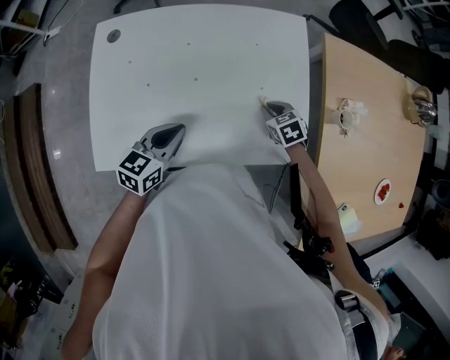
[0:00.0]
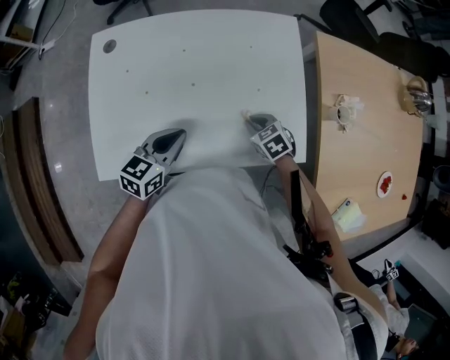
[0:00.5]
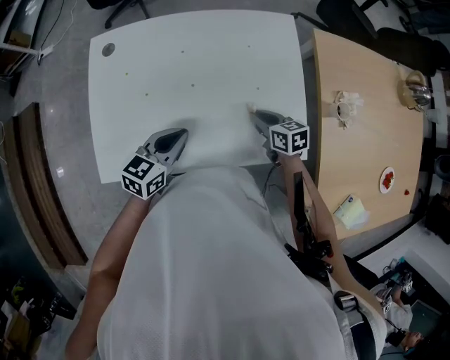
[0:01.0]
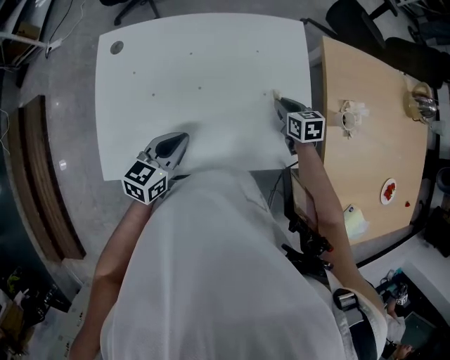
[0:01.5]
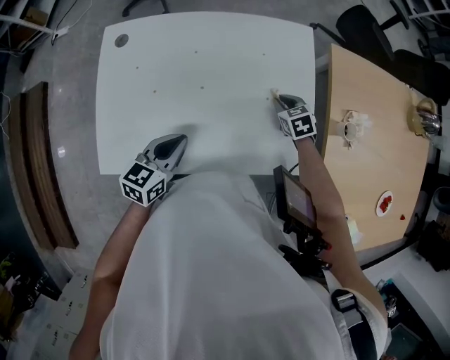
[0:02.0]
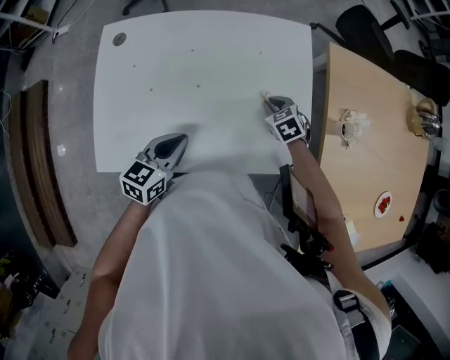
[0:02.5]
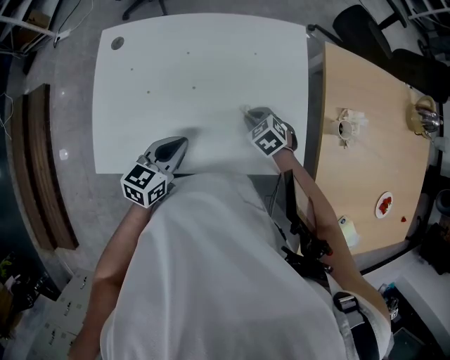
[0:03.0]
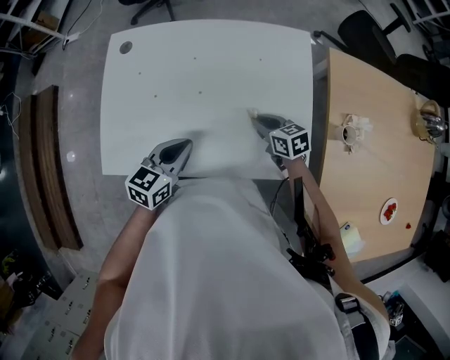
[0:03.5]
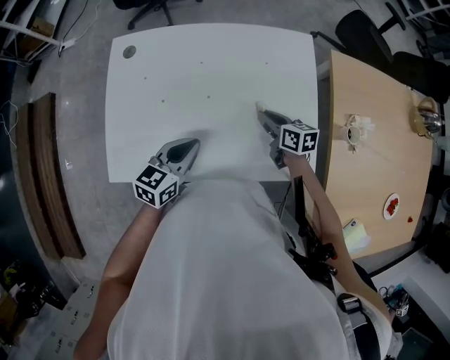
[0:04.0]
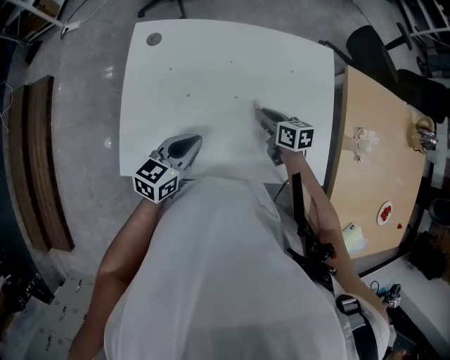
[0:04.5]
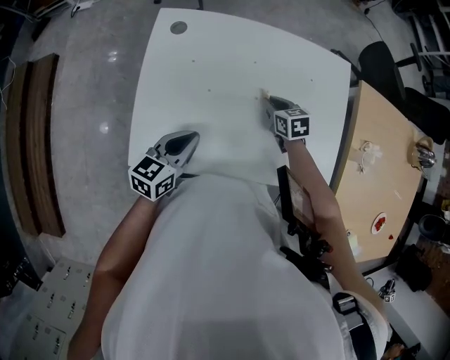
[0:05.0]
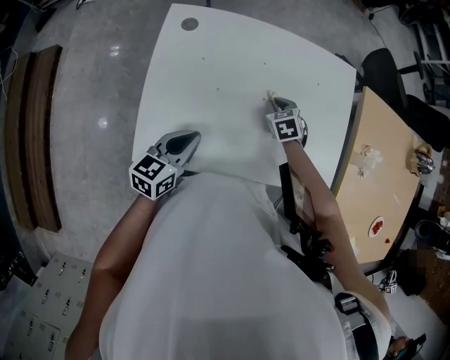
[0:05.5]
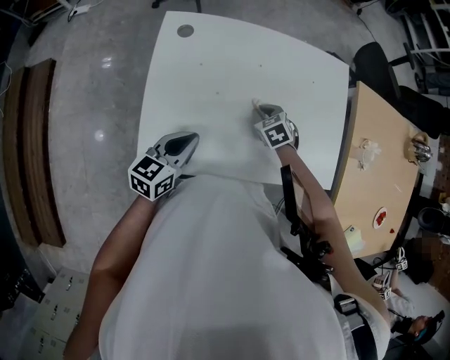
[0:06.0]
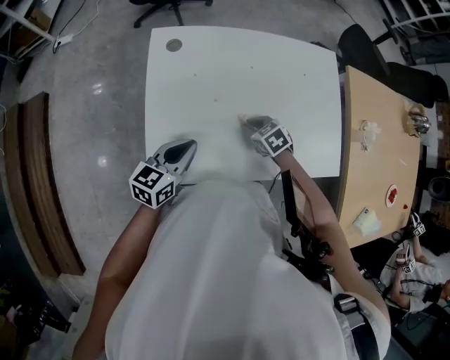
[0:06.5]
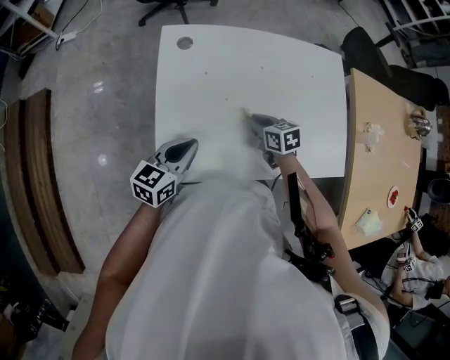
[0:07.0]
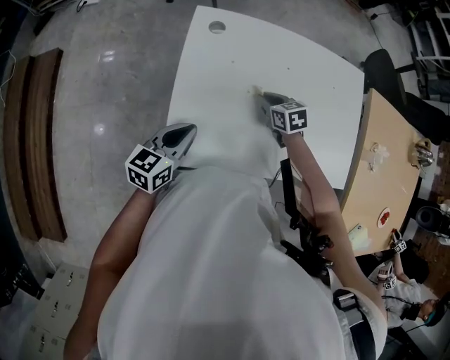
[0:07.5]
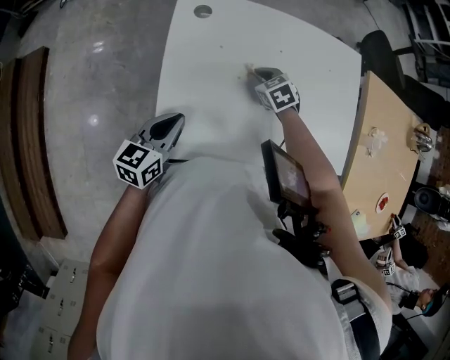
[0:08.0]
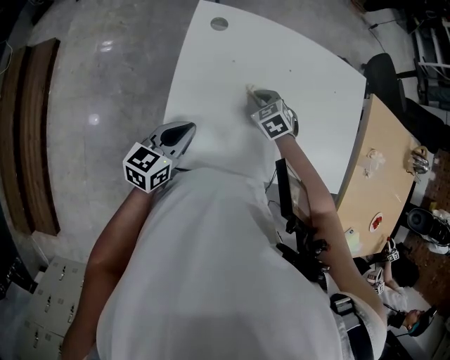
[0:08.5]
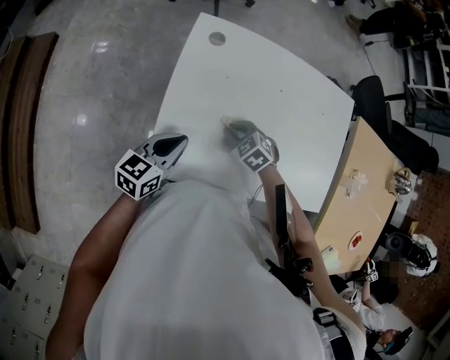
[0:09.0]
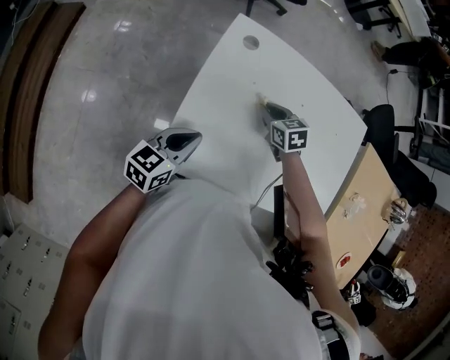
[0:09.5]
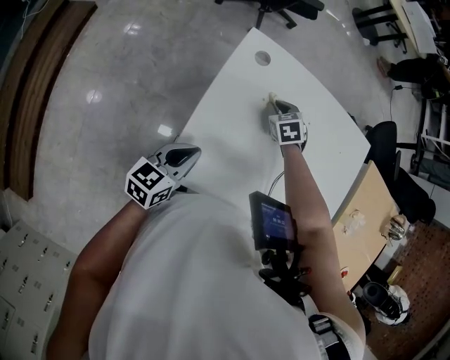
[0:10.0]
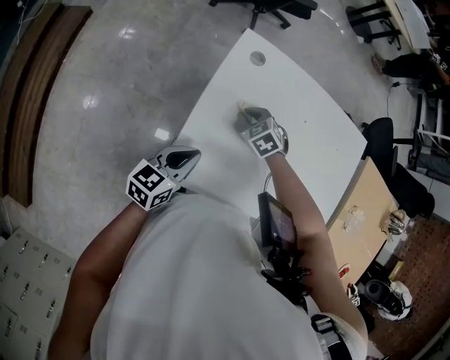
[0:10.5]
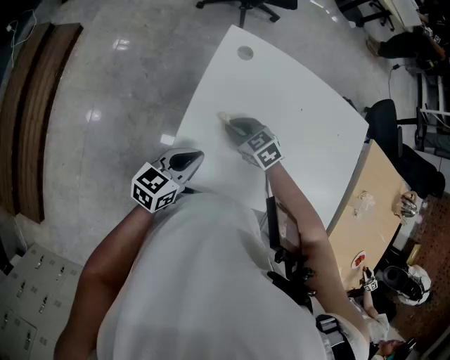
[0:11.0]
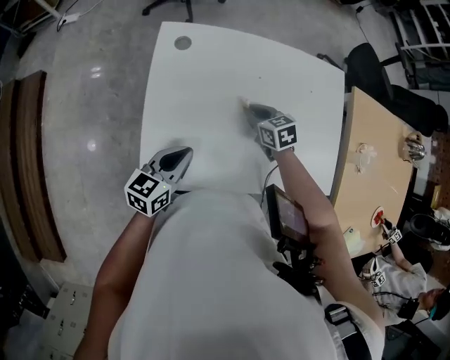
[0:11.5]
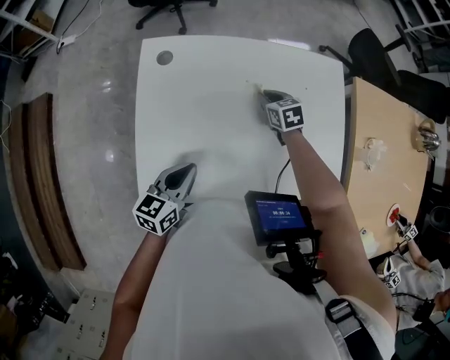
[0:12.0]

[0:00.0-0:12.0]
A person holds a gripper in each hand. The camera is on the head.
0:00.0 to 0:02.0: The right gripper travels forward by some 5 cm.
0:02.0 to 0:04.0: The right gripper heads to the left, covering approximately 10 cm, and swivels roughly 40 degrees.
0:04.0 to 0:06.0: The grippers both shift to the left by about 15 cm. The right gripper twists roughly 40 degrees counterclockwise, seen from behind.
0:06.0 to 0:08.0: The right gripper heads to the left and forward, covering roughly 10 cm. The left gripper travels to the left by roughly 10 cm.
0:08.0 to 0:10.0: The right gripper travels forward and to the left by some 10 cm.
0:10.0 to 0:12.0: The grippers both shift to the right by some 15 cm. The right gripper changes its angle by about 30 degrees.

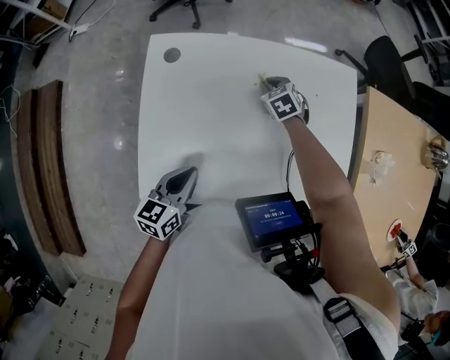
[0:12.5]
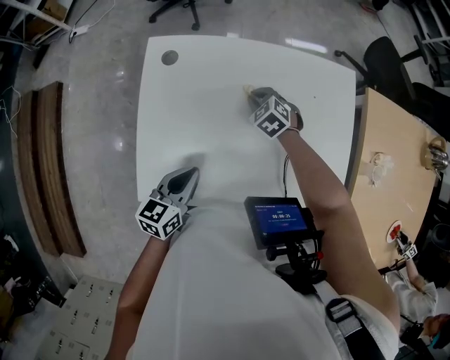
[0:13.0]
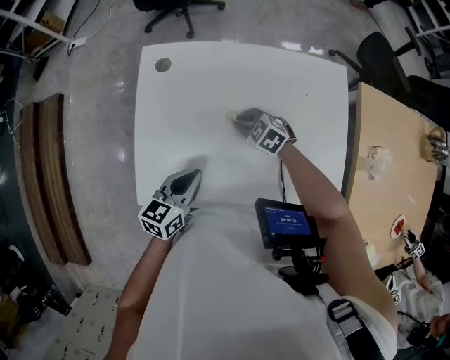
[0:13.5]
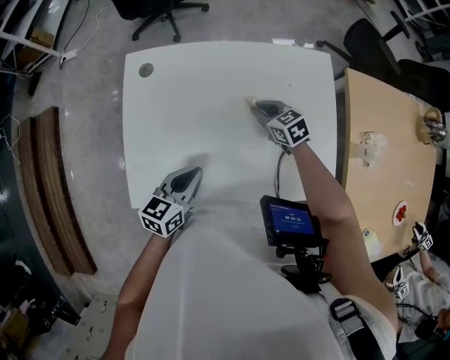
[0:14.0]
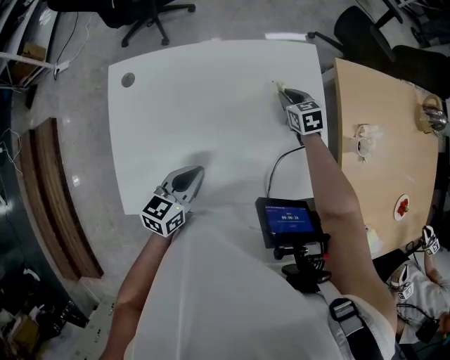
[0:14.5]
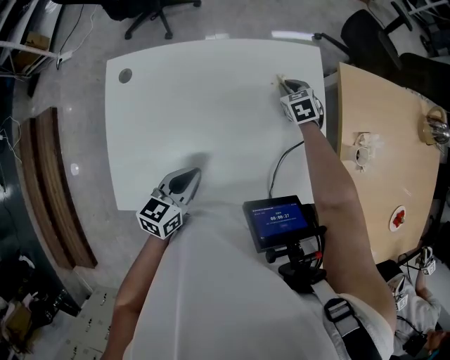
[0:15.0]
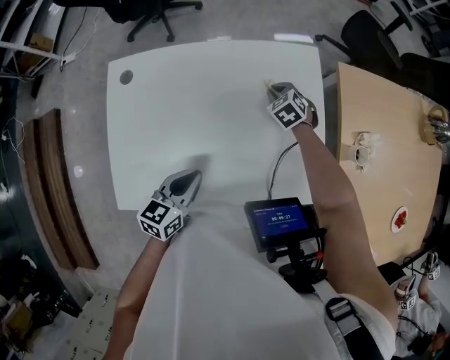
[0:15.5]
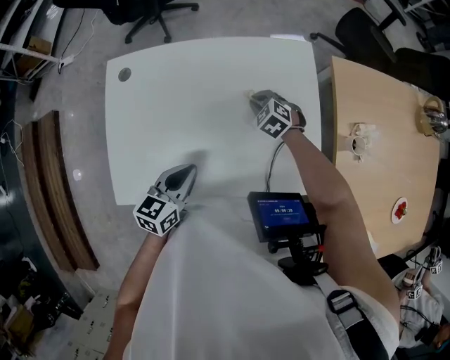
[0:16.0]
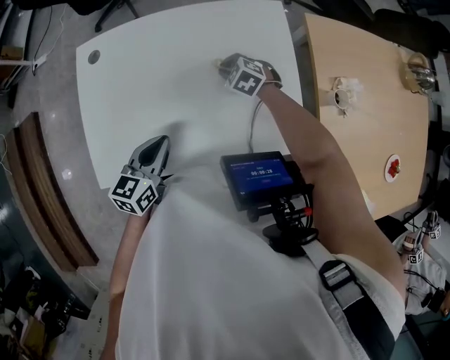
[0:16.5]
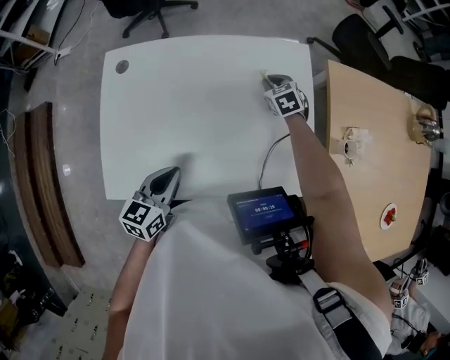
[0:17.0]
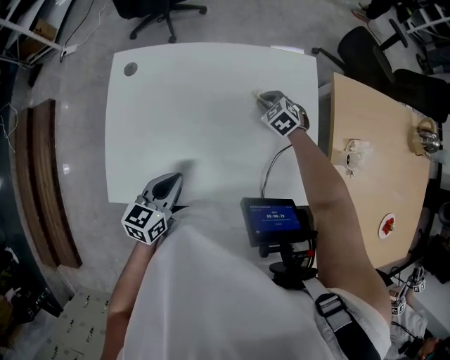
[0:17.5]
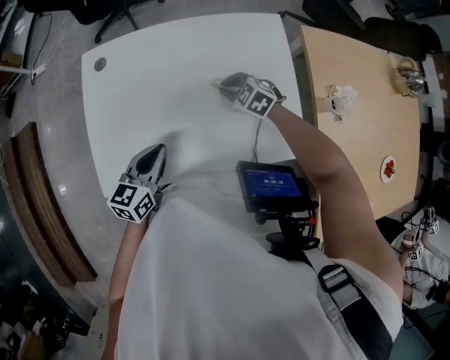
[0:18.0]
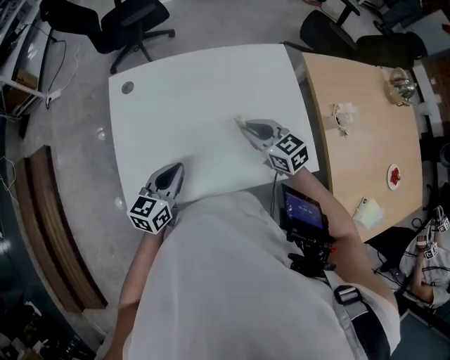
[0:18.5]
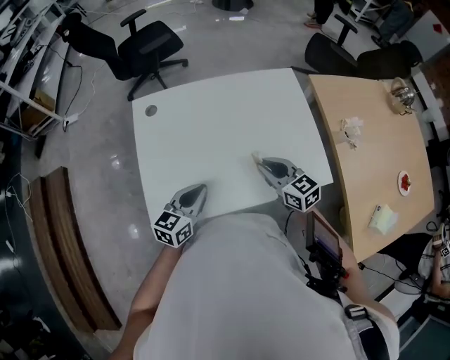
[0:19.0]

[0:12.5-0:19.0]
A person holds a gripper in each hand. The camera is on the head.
0:12.5 to 0:14.5: The left gripper moves approximately 10 cm; the right gripper moves approximately 20 cm, and rotates approximately 30 degrees.
0:14.5 to 0:17.0: The right gripper goes forward and backward, some 10 cm each way, reversing 2 times.
0:17.0 to 0:19.0: The right gripper moves backward, upward and to the left, about 35 cm, and changes its angle by roughly 30 degrees. The left gripper travels to the left by approximately 5 cm.

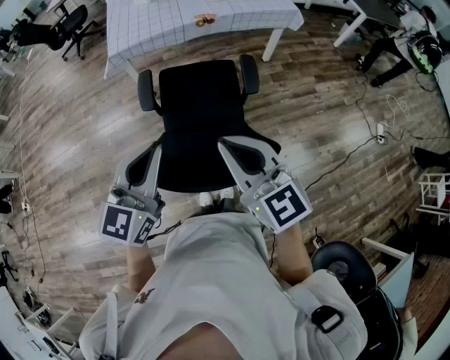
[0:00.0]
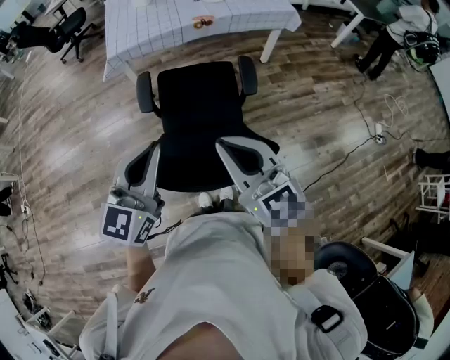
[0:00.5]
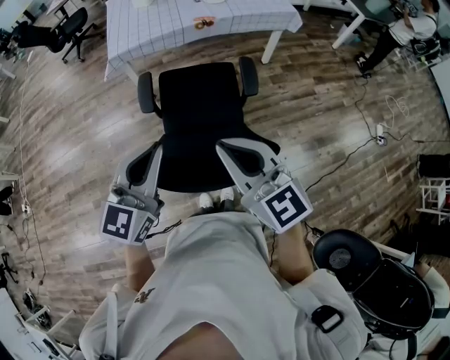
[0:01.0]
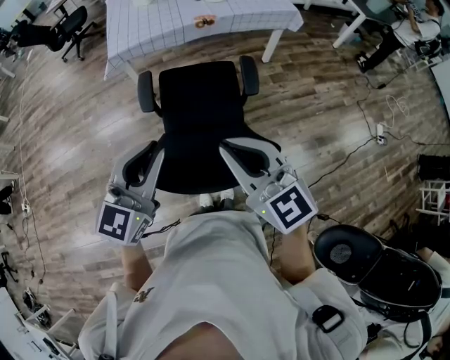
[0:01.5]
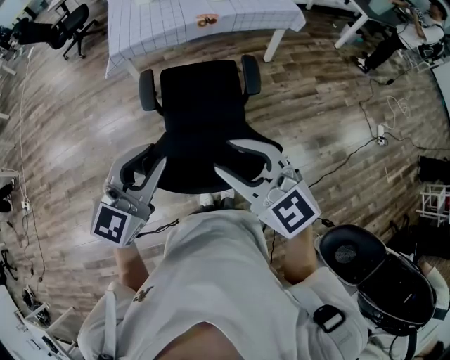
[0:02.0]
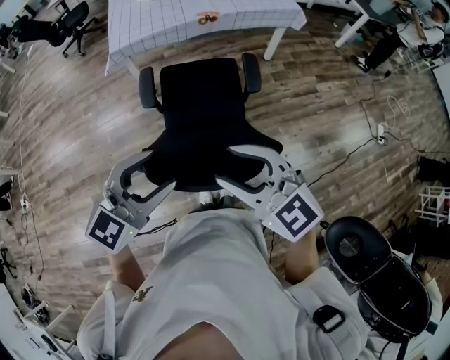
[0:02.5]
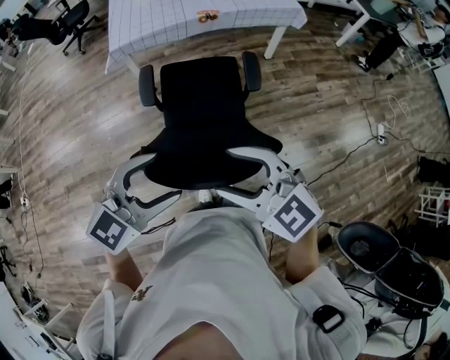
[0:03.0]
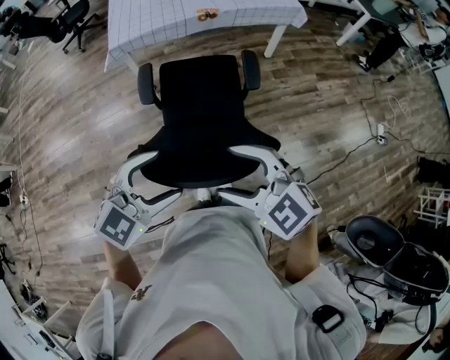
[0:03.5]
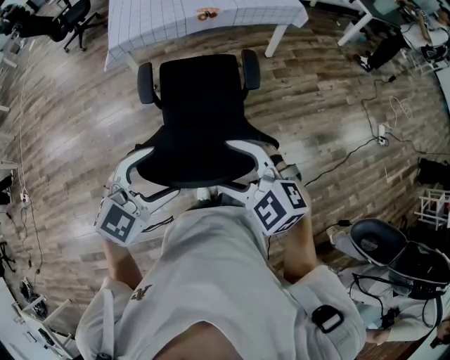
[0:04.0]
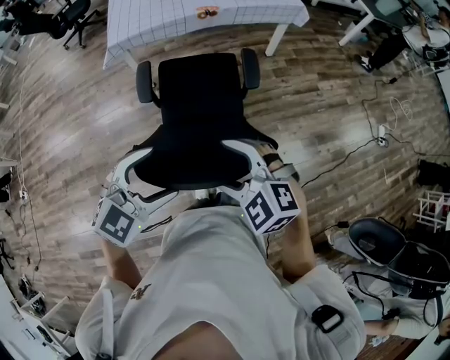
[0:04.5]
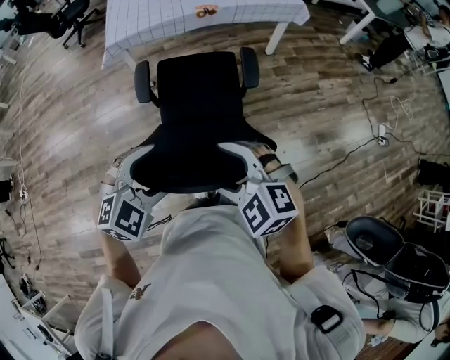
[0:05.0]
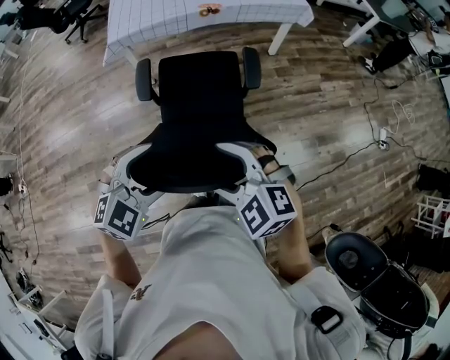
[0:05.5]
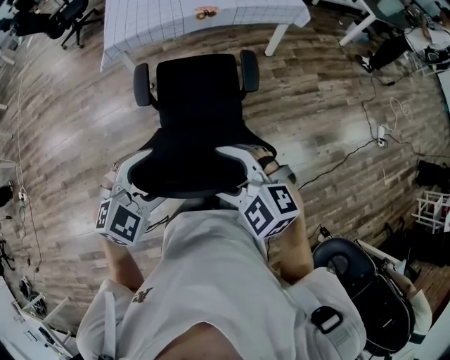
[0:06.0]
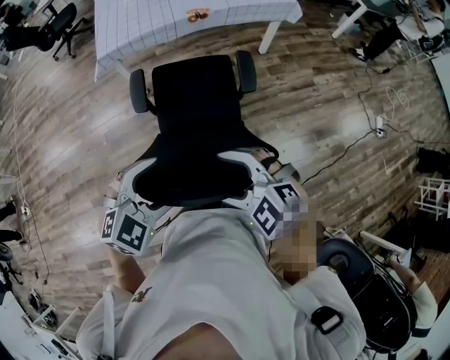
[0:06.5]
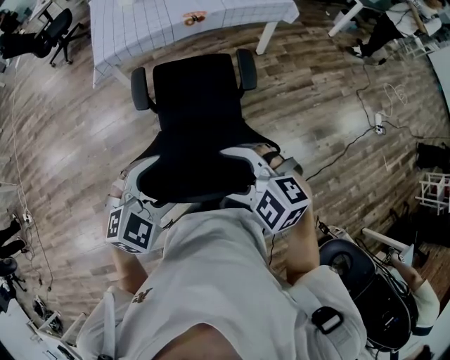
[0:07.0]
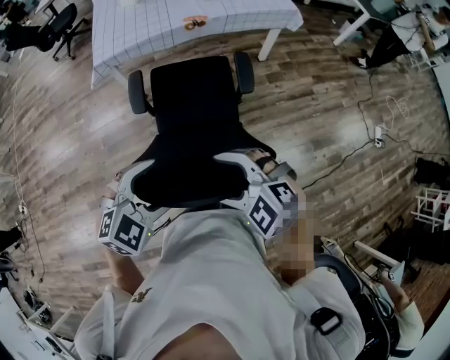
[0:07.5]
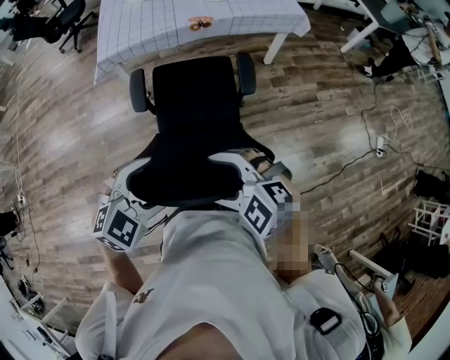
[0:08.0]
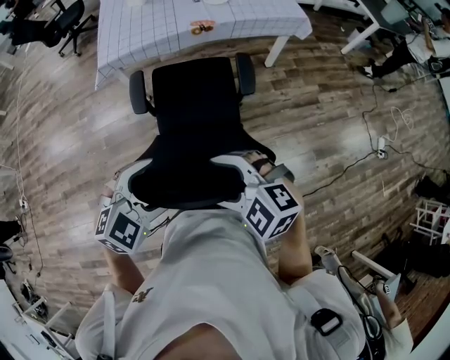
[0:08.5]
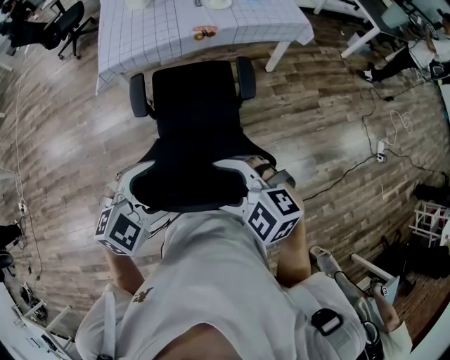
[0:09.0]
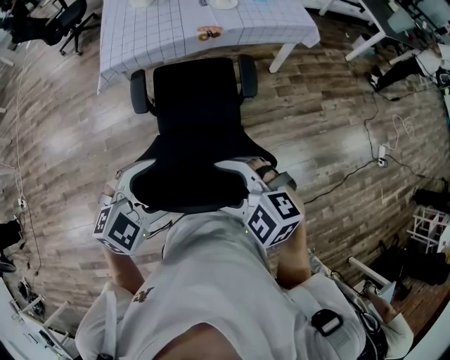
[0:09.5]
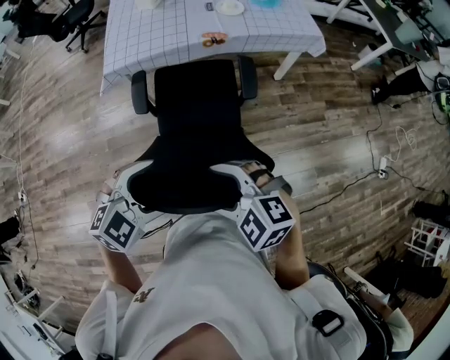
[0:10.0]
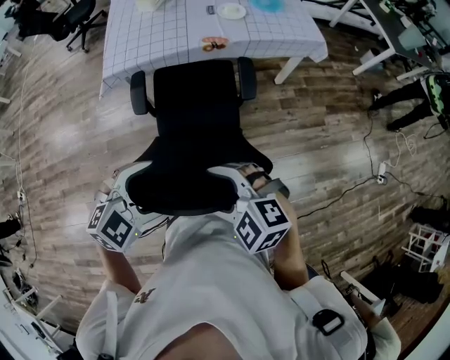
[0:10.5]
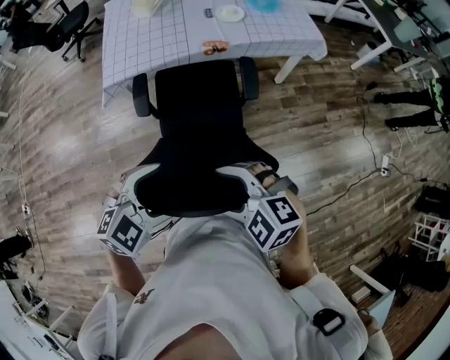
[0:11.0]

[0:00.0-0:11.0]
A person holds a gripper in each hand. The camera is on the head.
0:00.0 to 0:02.0: The right gripper opens its fingers.
0:02.0 to 0:03.5: The left gripper is displaced backward and downward by about 10 cm, changes its angle by about 30 degrees, and opens up; the right gripper changes place by approximately 5 cm, changes its angle by approximately 20 degrees, and opens.
0:03.5 to 0:05.5: The right gripper changes place by roughly 5 cm; the left gripper ends up some 5 cm from where it was.
0:05.5 to 0:07.5: Both grippers move forward, some 5 cm.
0:07.5 to 0:09.0: Both grippers travel together forward, about 5 cm.
0:09.0 to 0:11.0: The right gripper changes place by roughly 10 cm, while the left gripper shifts by approximately 10 cm.
